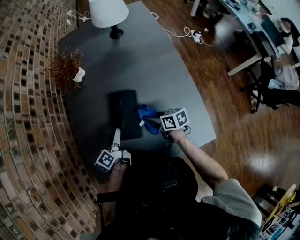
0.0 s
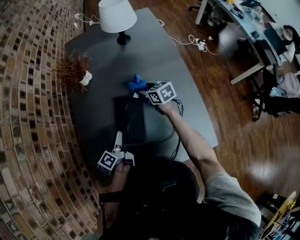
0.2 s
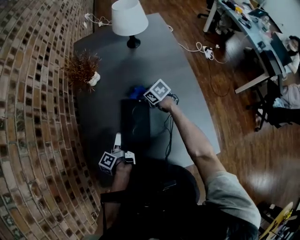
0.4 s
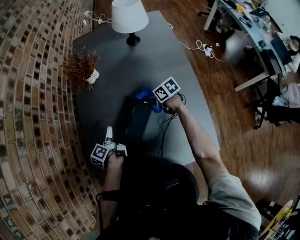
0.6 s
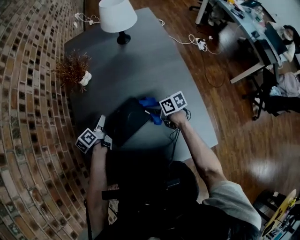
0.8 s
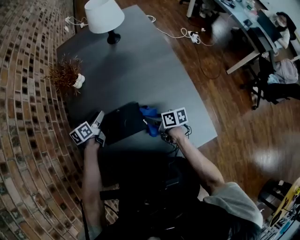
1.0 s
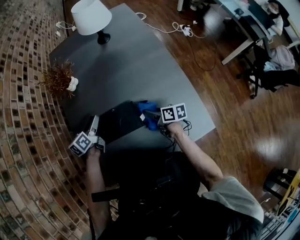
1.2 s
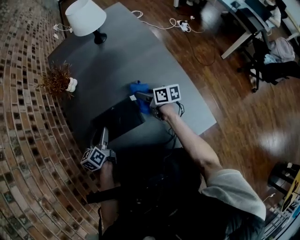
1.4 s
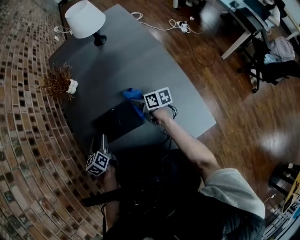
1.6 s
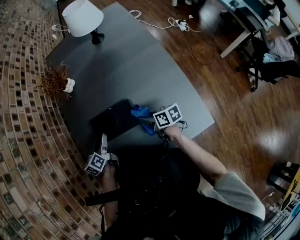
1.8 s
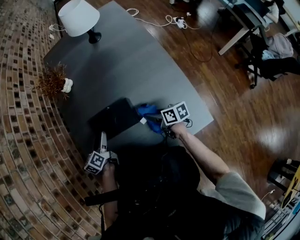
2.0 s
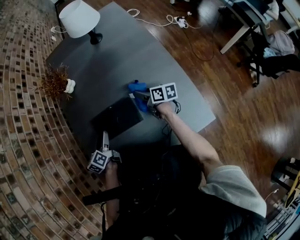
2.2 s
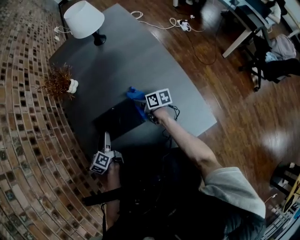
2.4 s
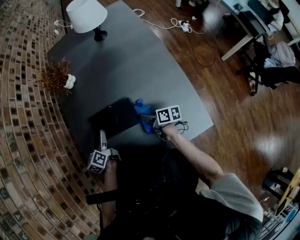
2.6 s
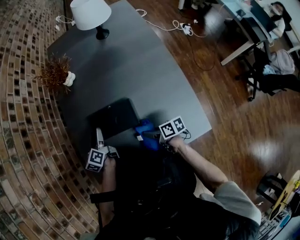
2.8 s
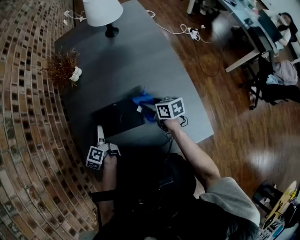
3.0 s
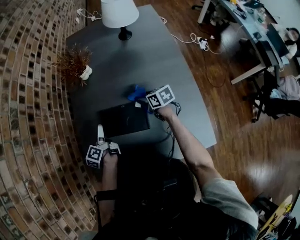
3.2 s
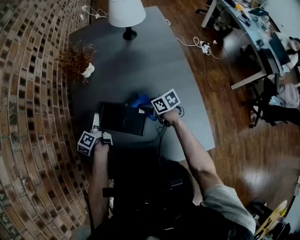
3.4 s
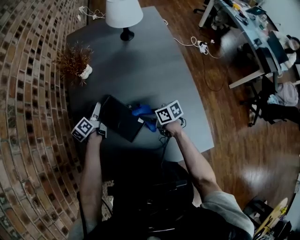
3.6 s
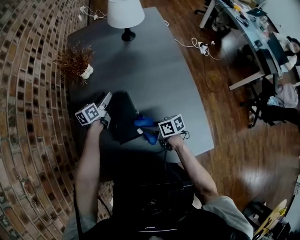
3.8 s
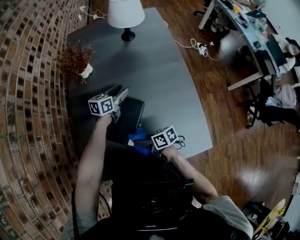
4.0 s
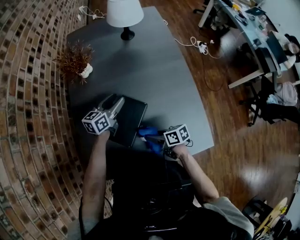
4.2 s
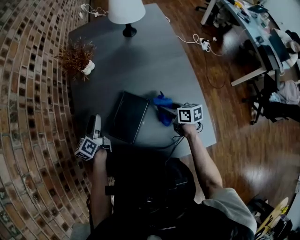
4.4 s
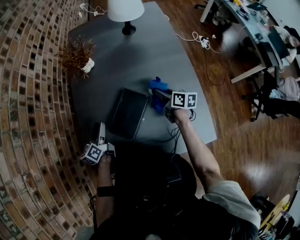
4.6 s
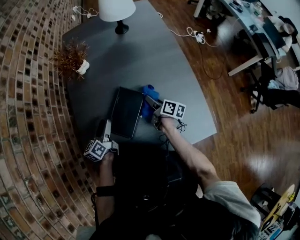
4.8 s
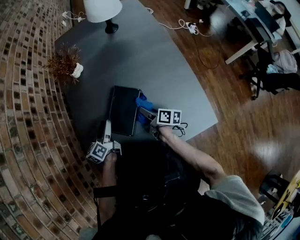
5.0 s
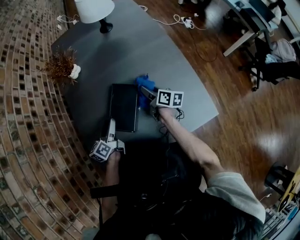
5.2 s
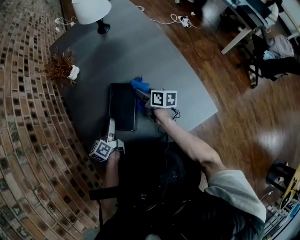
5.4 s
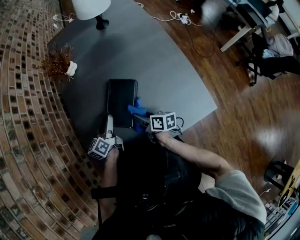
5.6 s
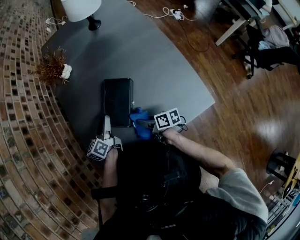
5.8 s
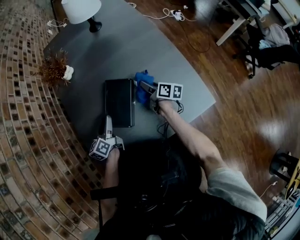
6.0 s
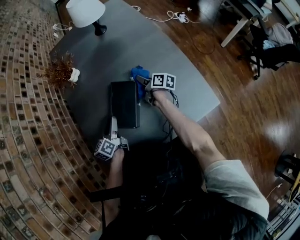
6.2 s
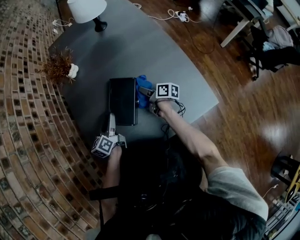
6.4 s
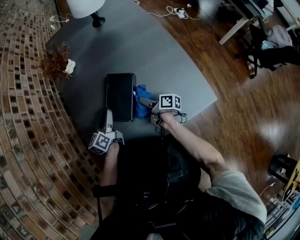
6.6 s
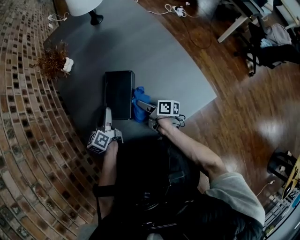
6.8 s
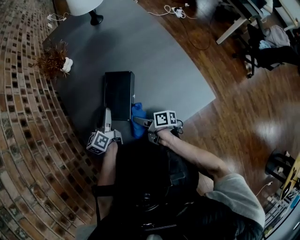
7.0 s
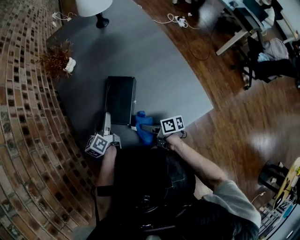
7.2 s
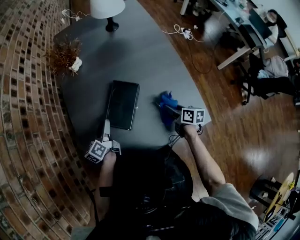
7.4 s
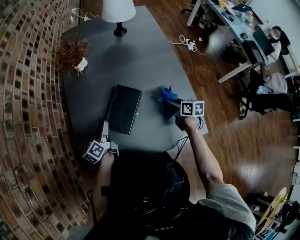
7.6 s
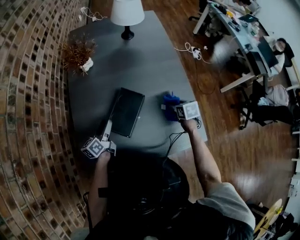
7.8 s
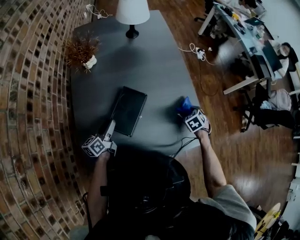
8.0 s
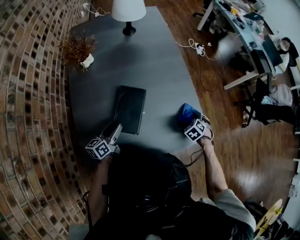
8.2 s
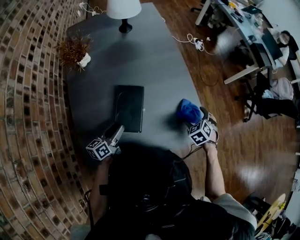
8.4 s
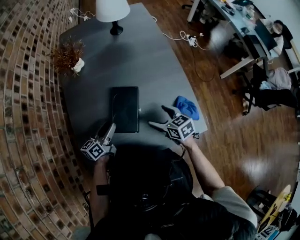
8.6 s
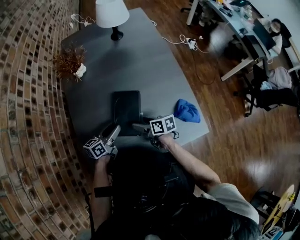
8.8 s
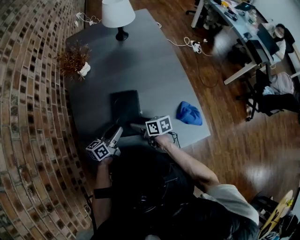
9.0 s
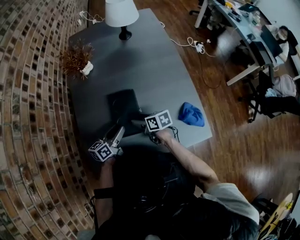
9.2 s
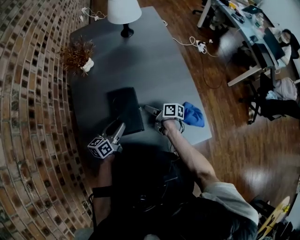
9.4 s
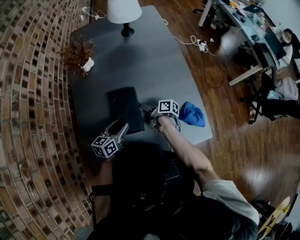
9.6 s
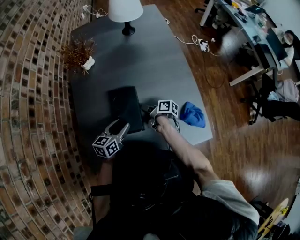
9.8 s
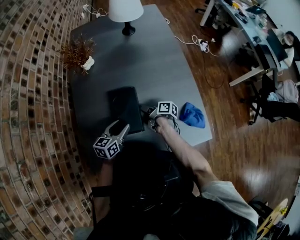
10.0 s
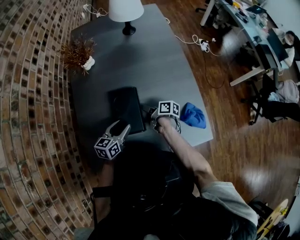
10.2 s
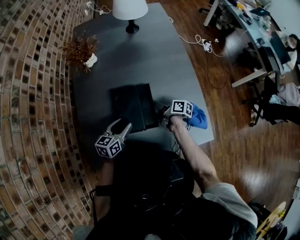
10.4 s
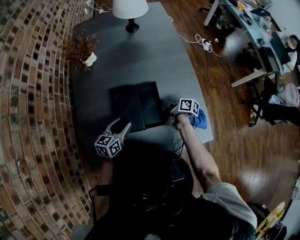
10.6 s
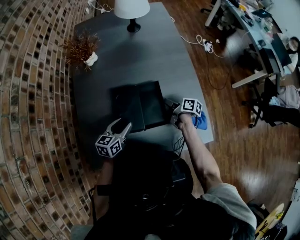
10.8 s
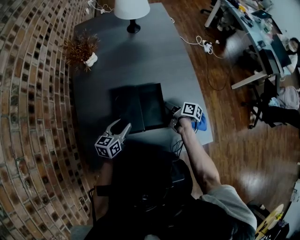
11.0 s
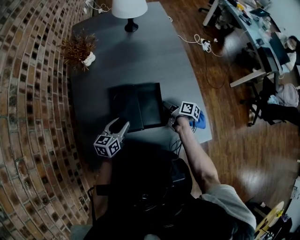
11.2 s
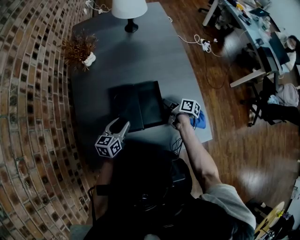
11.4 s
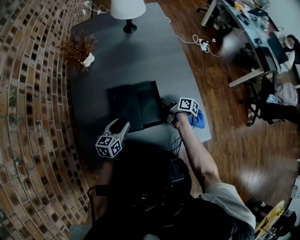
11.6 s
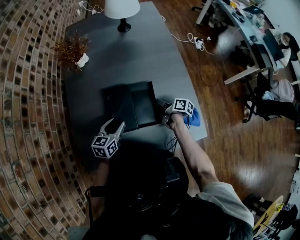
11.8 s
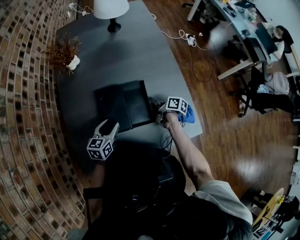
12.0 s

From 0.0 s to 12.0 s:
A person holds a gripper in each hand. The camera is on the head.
From 0.0 s to 1.6 s: The left gripper swivels about 40 degrees.
From 1.6 s to 3.0 s: The left gripper swivels about 30 degrees, while the right gripper goes forward and backward, some 15 cm each way, reversing 3 times.
From 3.0 s to 4.4 s: The left gripper heads upward, covering about 5 cm, and moves some 20 cm to the right and comes back, while the right gripper moves forward and backward over roughly 20 cm, changing direction 2 times.
From 4.4 s to 6.0 s: The right gripper swings forward and backward, roughly 20 cm each way, with 4 reversals, and changes its angle by some 30 degrees, while the left gripper heads backward, to the right and downward, covering some 10 cm.
From 6.0 s to 7.6 s: The right gripper goes forward and backward, some 25 cm each way, reversing 2 times, and turns by roughly 30 degrees.
From 7.6 s to 9.0 s: The left gripper shifts by roughly 10 cm, and turns by approximately 30 degrees; the right gripper swings up and down, some 10 cm each way, with 2 reversals, and opens its fingers.
From 9.0 s to 10.4 s: The right gripper shifts approximately 15 cm to the right and forward, turns by some 30 degrees, and closes up; the left gripper swivels about 20 degrees.
From 10.4 s to 12.0 s: The right gripper goes approximately 5 cm to the right.

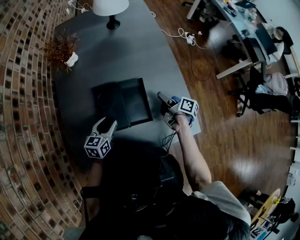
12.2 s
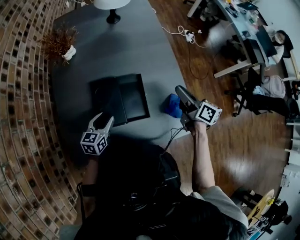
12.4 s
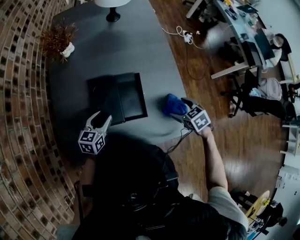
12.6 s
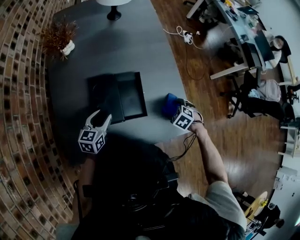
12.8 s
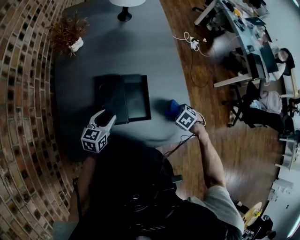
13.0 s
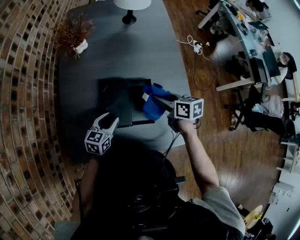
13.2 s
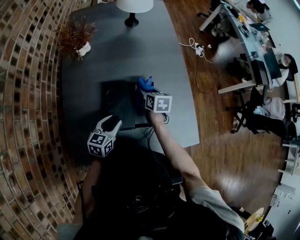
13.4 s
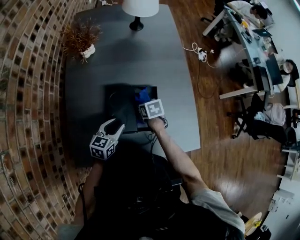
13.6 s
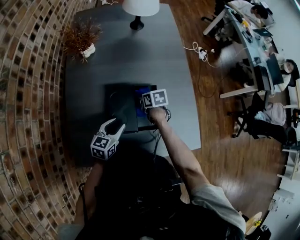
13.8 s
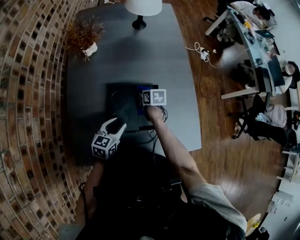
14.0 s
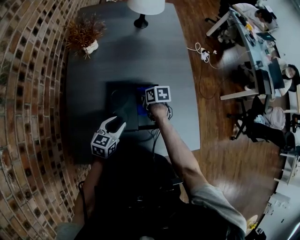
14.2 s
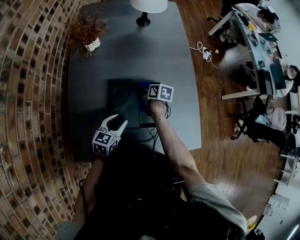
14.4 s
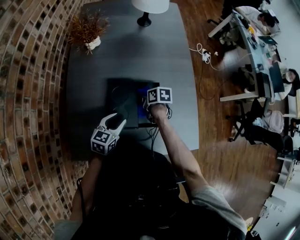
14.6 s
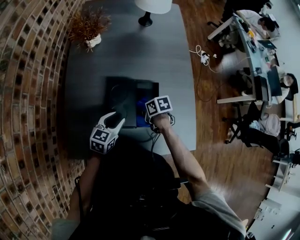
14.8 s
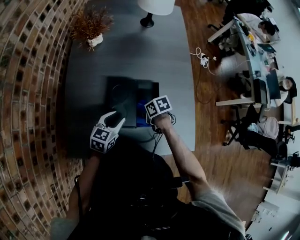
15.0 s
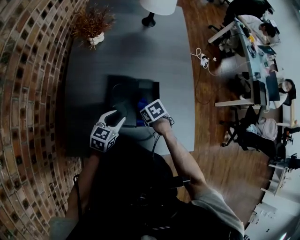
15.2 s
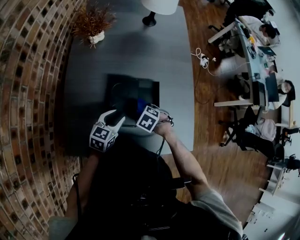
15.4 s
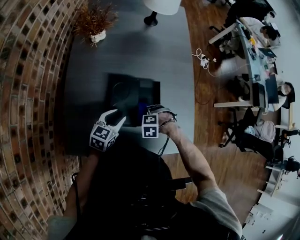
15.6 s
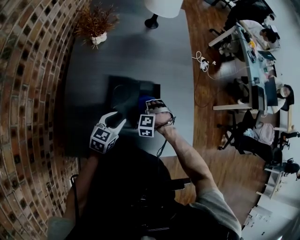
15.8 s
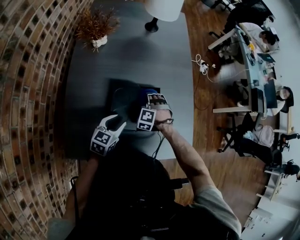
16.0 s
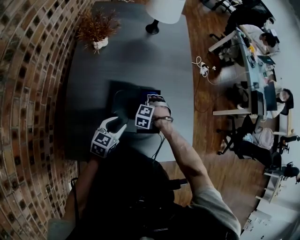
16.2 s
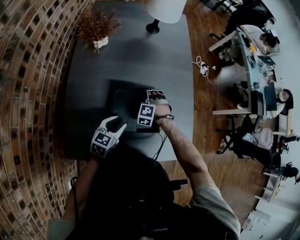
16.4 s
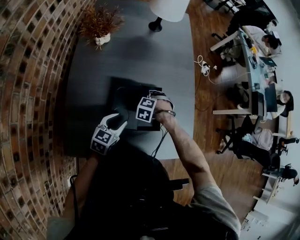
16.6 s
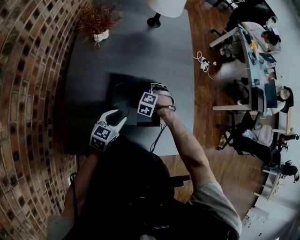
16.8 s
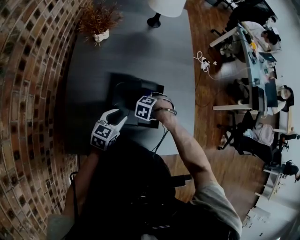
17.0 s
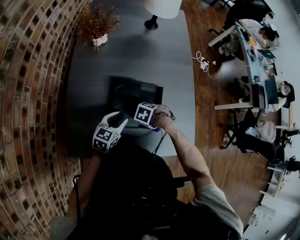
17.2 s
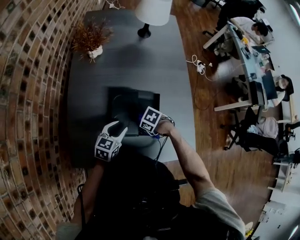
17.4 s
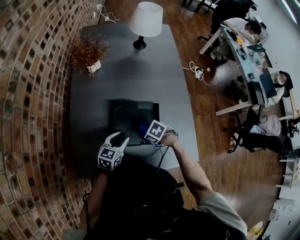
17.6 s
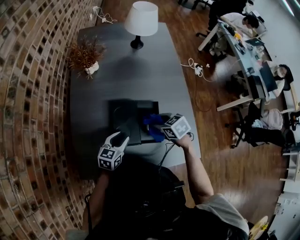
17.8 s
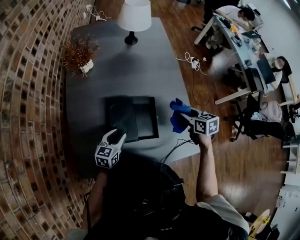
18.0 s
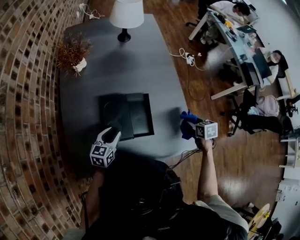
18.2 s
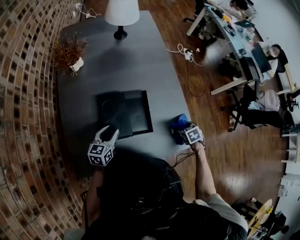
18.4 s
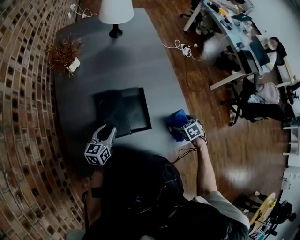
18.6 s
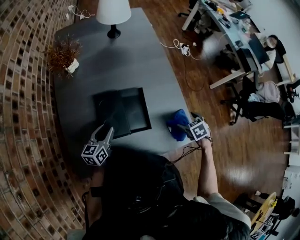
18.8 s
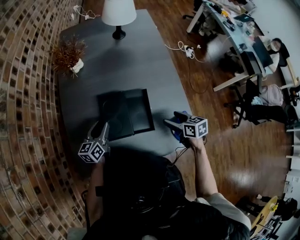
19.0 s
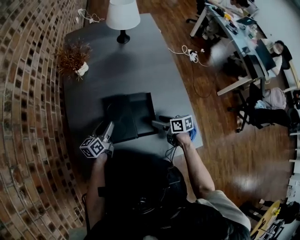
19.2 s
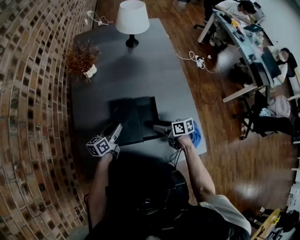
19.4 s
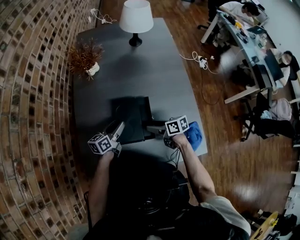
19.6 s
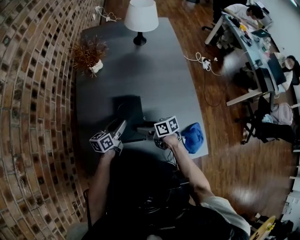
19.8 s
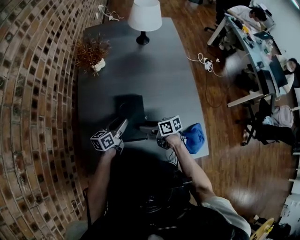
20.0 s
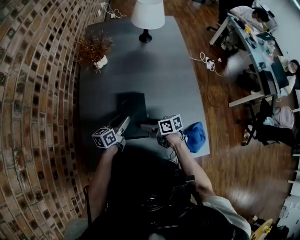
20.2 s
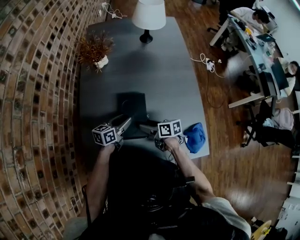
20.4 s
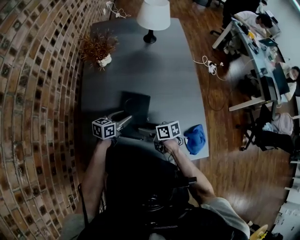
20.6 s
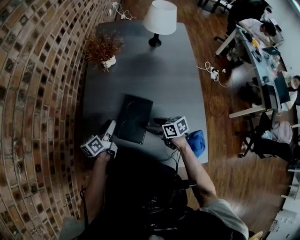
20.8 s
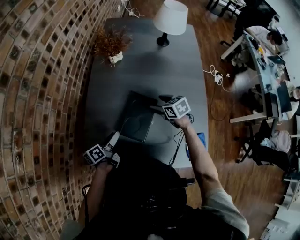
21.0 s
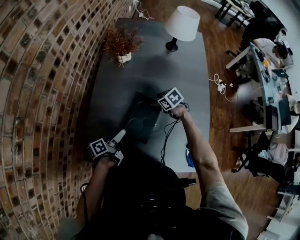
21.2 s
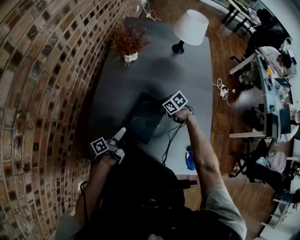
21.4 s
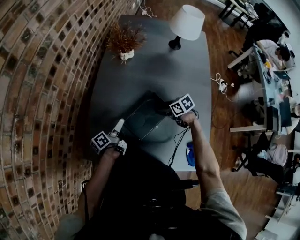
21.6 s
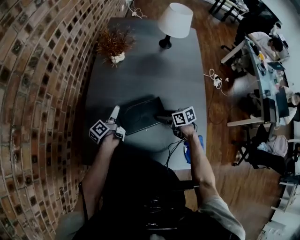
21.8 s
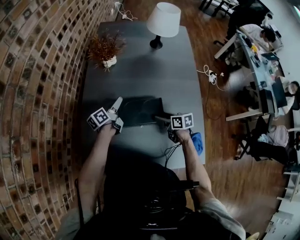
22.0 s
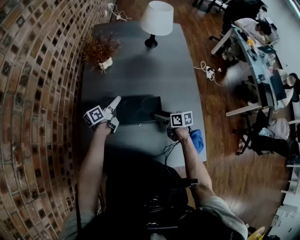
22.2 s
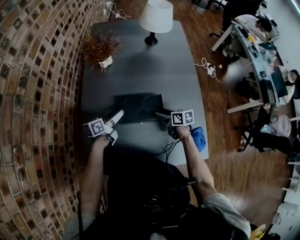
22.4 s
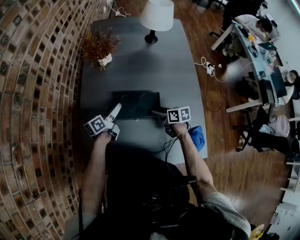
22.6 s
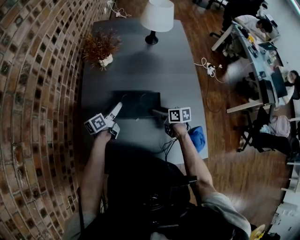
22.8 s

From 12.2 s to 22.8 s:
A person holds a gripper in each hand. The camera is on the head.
From 12.2 s to 13.8 s: The right gripper swings up and down, roughly 20 cm each way, with 3 reversals, points its fingers some 40 degrees further downward, and opens and closes again.
From 13.8 s to 15.2 s: The right gripper heads backward, covering some 10 cm, and swivels some 30 degrees.
From 15.2 s to 16.8 s: The right gripper shifts by approximately 10 cm, and rotates around the line of its fingers by approximately 60 degrees, counterclockwise from behind.
From 16.8 s to 18.2 s: The right gripper changes place by about 30 cm, and rotates around the line of its fingers by some 90 degrees, clockwise from behind.
From 18.2 s to 19.8 s: The left gripper changes place by some 5 cm, and rotates approximately 30 degrees. Meanwhile the right gripper moves up and down over approximately 10 cm, changing direction 2 times, angles its fingers upward, by about 30 degrees, and opens its fingers.
From 19.8 s to 21.2 s: The left gripper travels to the left and backward by approximately 10 cm, rolls counterclockwise, seen from behind, by about 40 degrees, and opens its fingers; the right gripper heads forward, covering approximately 15 cm, and angles its fingers downward, by about 30 degrees.
From 21.2 s to 22.8 s: The right gripper moves approximately 10 cm, and rotates around the line of its fingers by some 40 degrees, clockwise from behind; the left gripper shifts by some 15 cm, and rotates approximately 30 degrees.

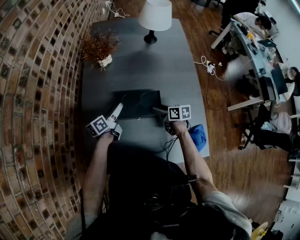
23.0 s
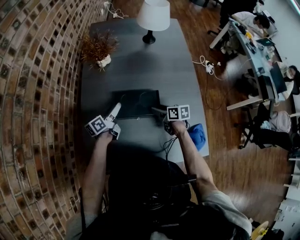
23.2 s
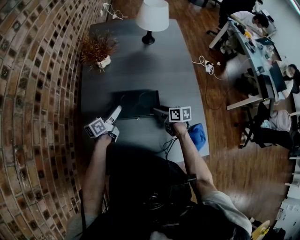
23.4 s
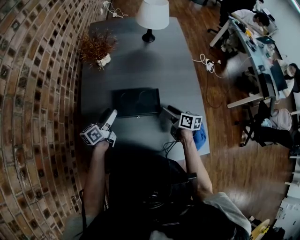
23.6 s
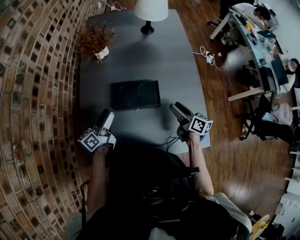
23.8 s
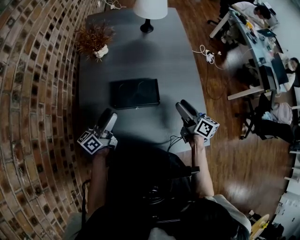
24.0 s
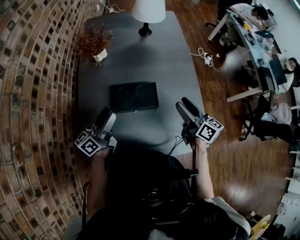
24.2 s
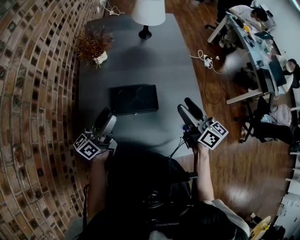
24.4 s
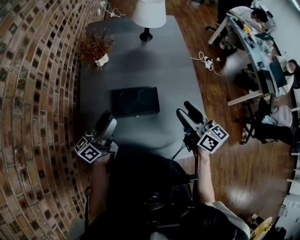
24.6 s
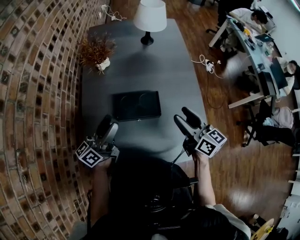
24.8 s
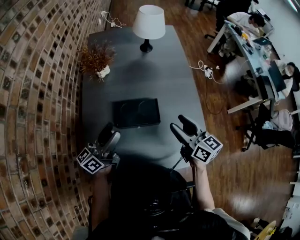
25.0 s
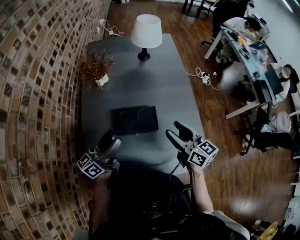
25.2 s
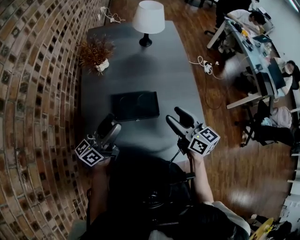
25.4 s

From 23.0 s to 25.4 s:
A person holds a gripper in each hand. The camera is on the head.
From 23.0 s to 24.2 s: The left gripper is displaced upward and backward by about 20 cm, and turns by some 20 degrees, while the right gripper goes roughly 20 cm upward, and turns by some 40 degrees.
From 24.2 s to 25.4 s: The left gripper heads upward, covering roughly 5 cm. The right gripper shifts by approximately 5 cm.
